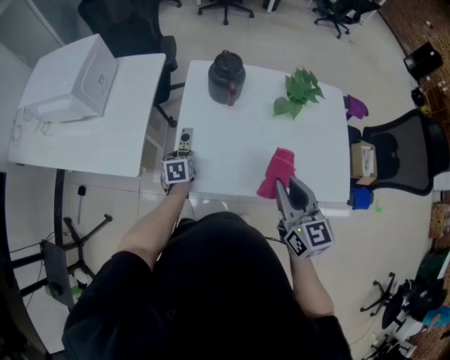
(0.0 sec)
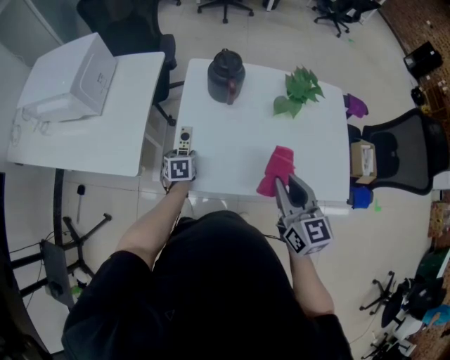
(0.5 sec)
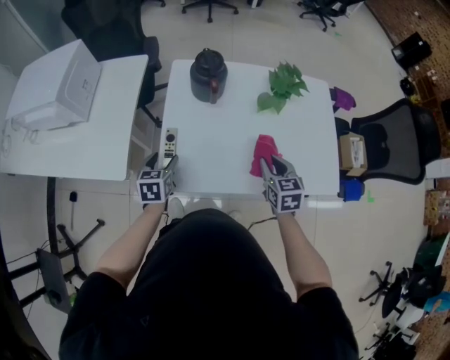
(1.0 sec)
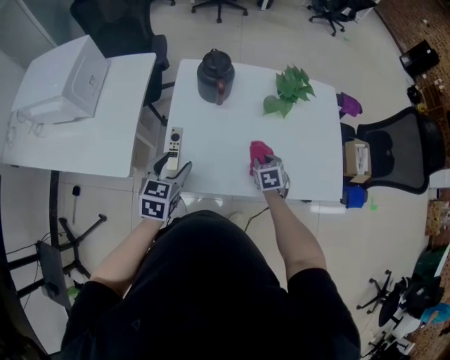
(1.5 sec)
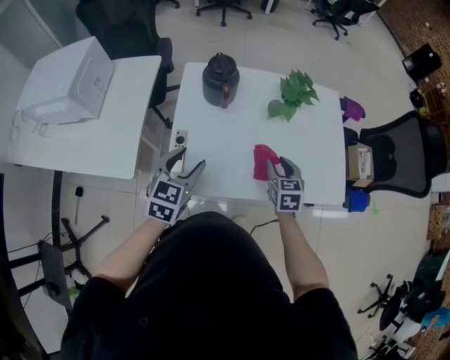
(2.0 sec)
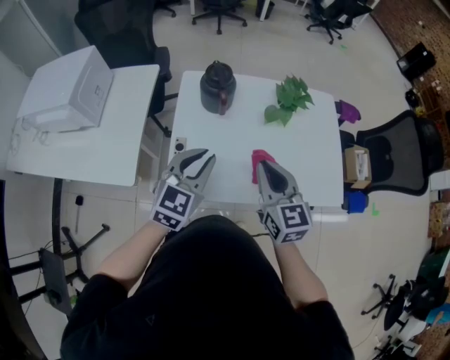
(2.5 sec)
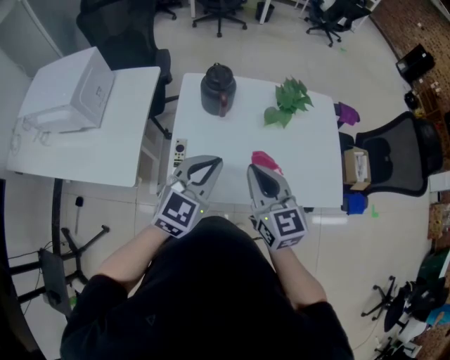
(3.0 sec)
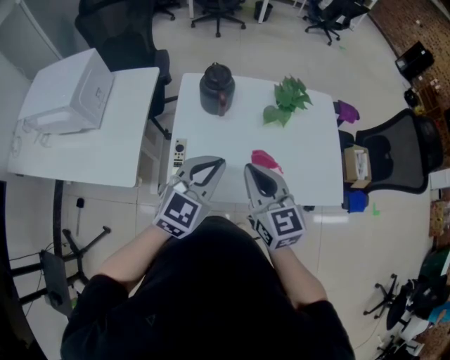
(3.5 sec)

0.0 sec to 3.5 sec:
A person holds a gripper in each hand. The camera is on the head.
0.0 sec to 2.0 sec: The right gripper travels downward and forward by roughly 20 cm, and swivels about 30 degrees. The left gripper shifts approximately 20 cm upward, and rotates approximately 40 degrees.
2.0 sec to 3.5 sec: The left gripper travels upward and to the right by roughly 15 cm, changes its angle by about 20 degrees, and closes. The right gripper heads upward, to the left and backward, covering some 25 cm, rotates approximately 30 degrees, and closes.

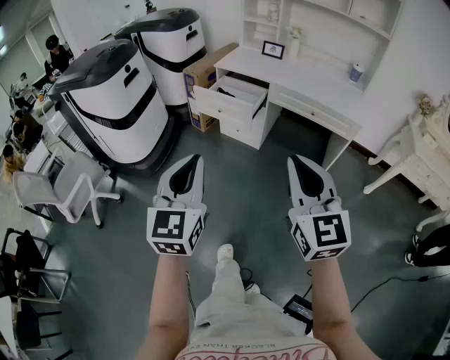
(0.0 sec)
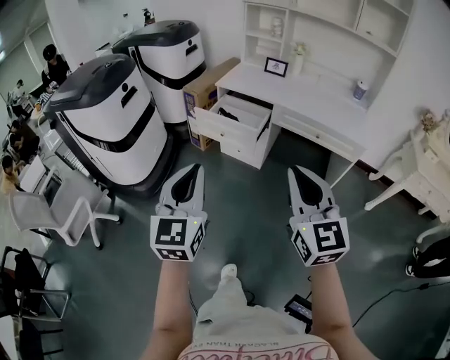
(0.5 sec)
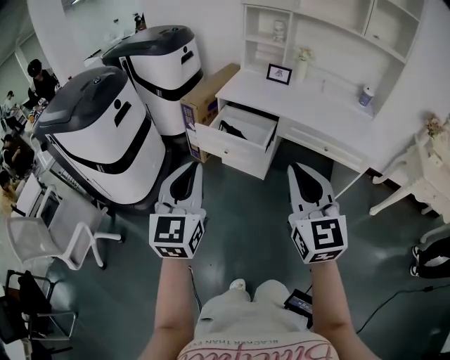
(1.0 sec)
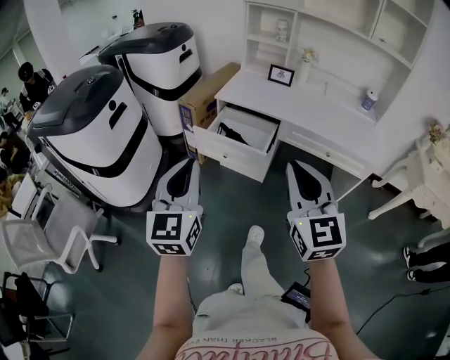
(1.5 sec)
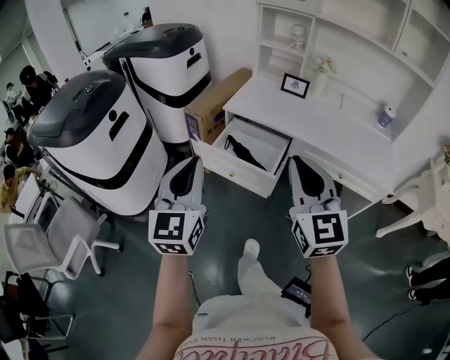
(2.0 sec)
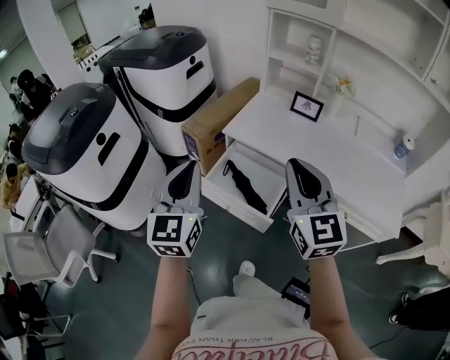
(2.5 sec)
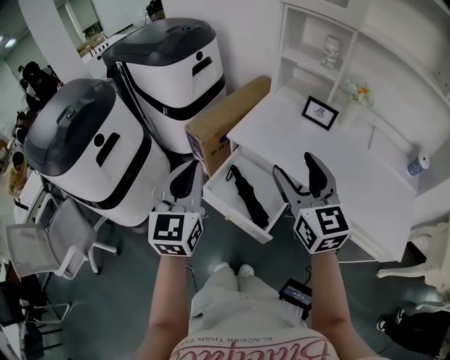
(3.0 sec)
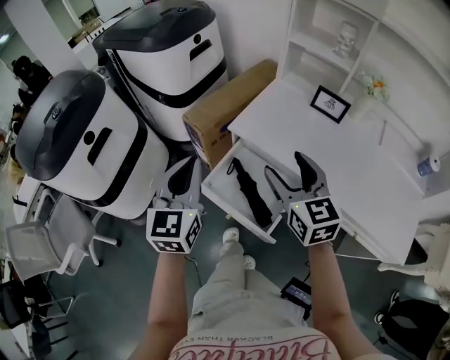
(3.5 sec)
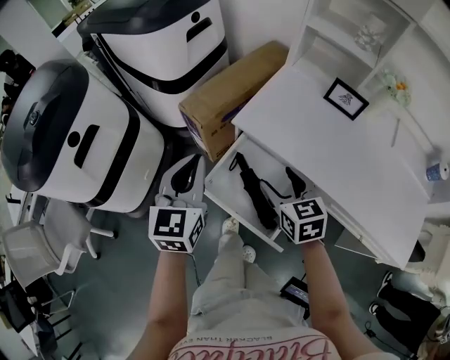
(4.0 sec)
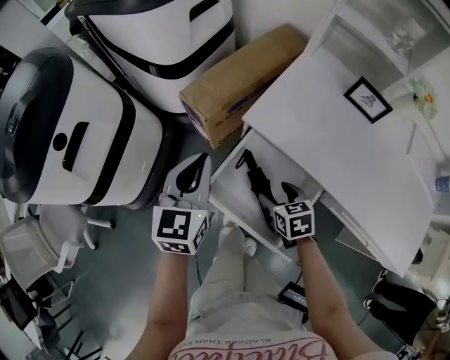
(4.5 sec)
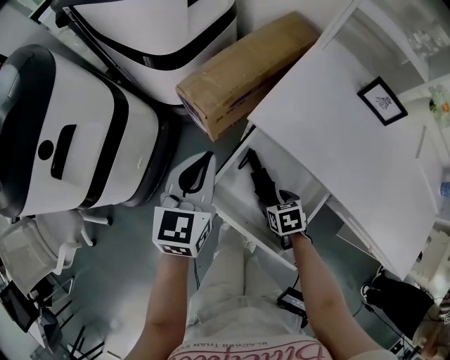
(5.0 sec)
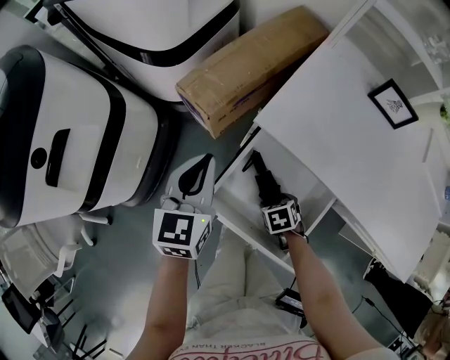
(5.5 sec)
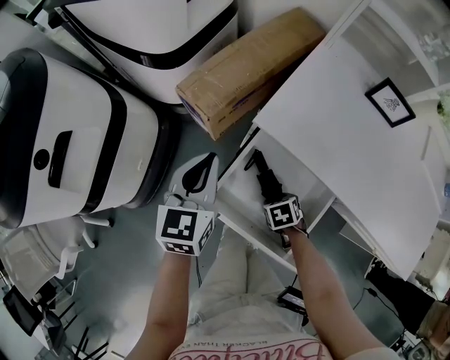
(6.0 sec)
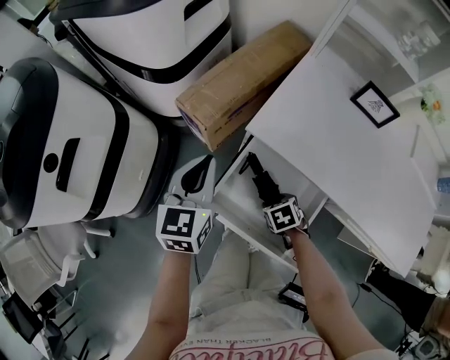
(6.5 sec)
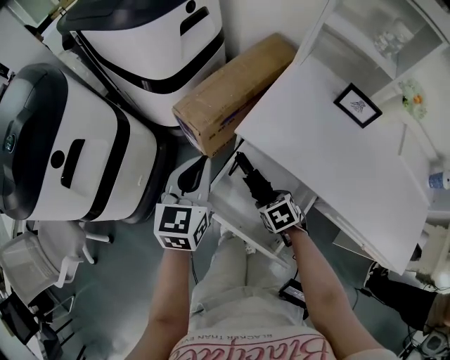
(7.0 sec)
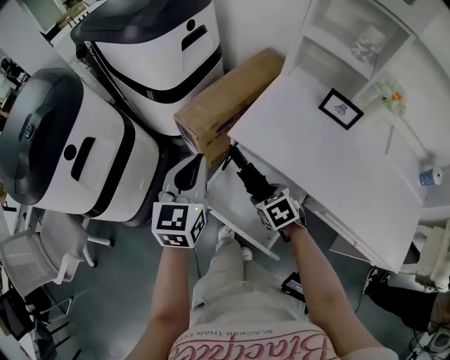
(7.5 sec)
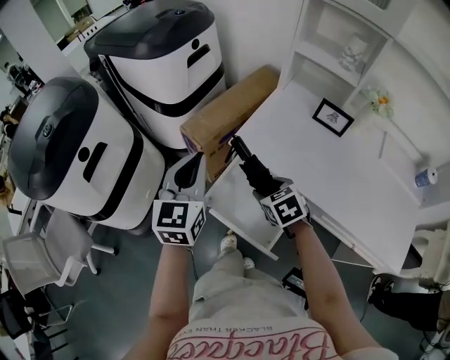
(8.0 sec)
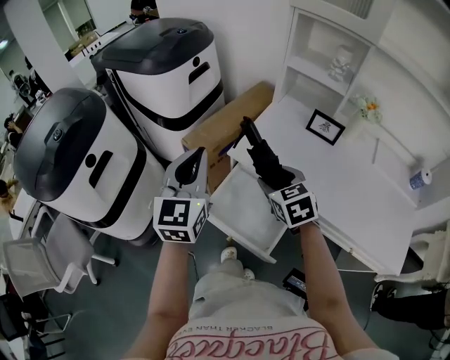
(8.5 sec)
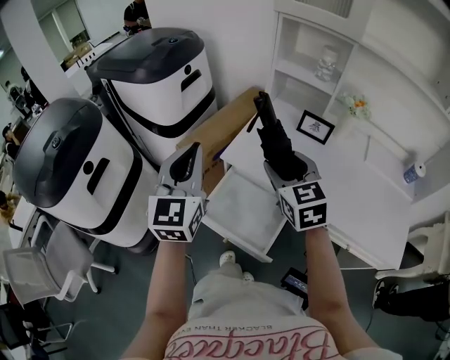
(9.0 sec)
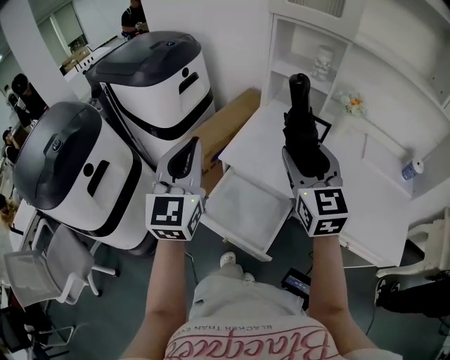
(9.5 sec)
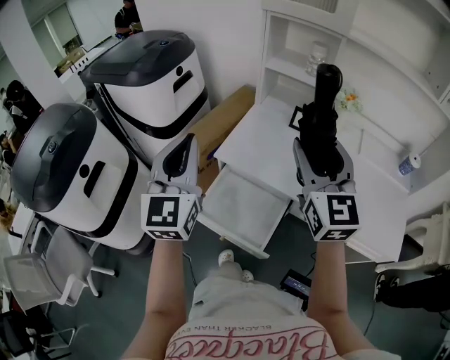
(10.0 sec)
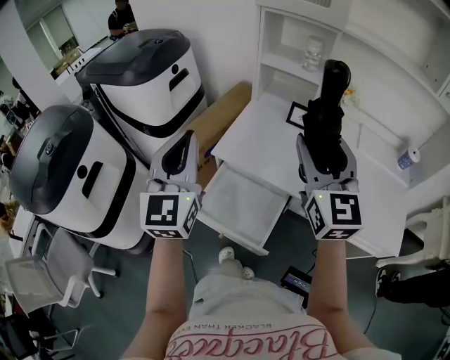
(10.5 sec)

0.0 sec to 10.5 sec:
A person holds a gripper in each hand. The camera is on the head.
0.0 sec to 2.0 sec: The grippers both shift forward by some 40 cm.
2.0 sec to 4.0 sec: The left gripper is displaced forward by some 35 cm, while the right gripper travels forward and downward by roughly 40 cm, angles its fingers downward, by some 40 degrees, and opens.
4.0 sec to 6.5 sec: The right gripper moves downward, roughly 25 cm, and tilts its fingers roughly 40 degrees downward, while the left gripper heads downward, covering some 10 cm.
6.5 sec to 8.5 sec: The left gripper heads upward, covering approximately 20 cm, and turns by about 20 degrees; the right gripper heads upward, covering some 30 cm, and angles its fingers upward, by about 40 degrees.
8.5 sec to 10.5 sec: The right gripper is displaced upward and to the right by some 25 cm, and tilts its fingers roughly 40 degrees upward. Meanwhile the left gripper heads upward, covering about 10 cm.

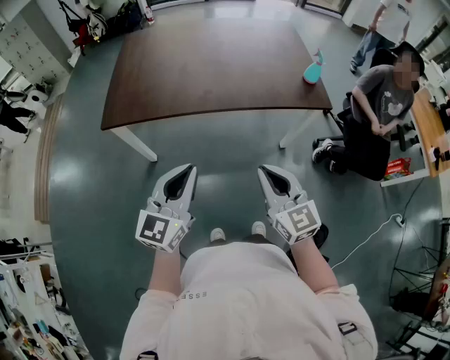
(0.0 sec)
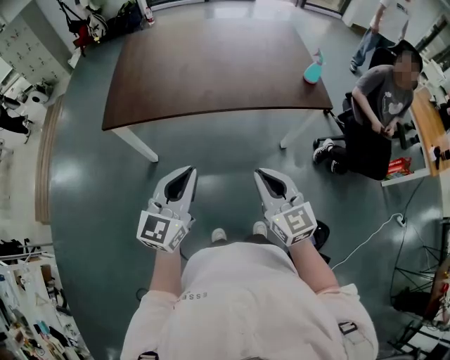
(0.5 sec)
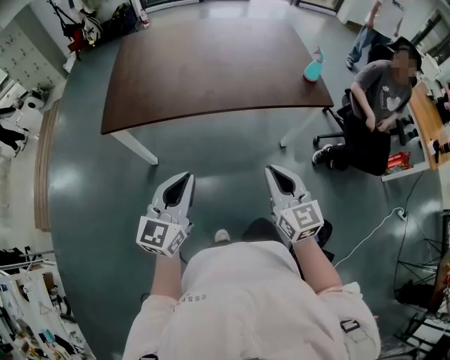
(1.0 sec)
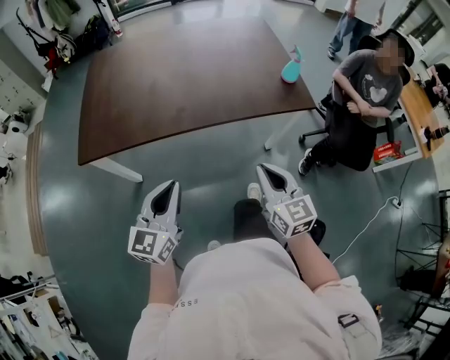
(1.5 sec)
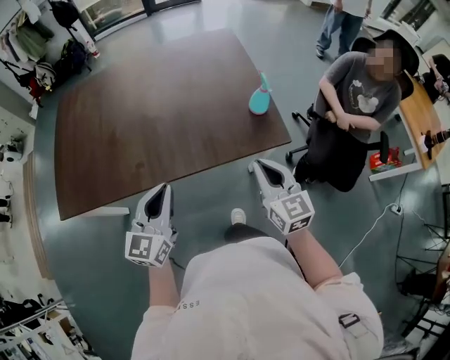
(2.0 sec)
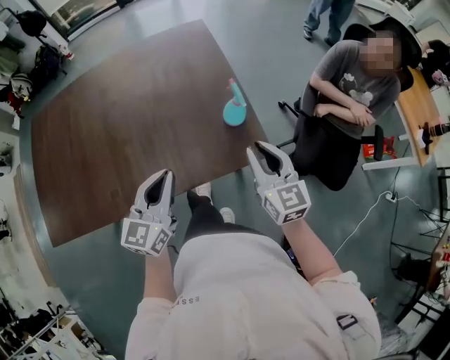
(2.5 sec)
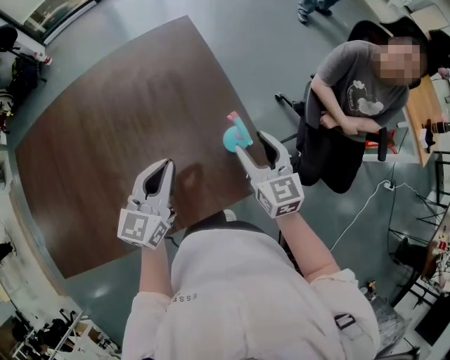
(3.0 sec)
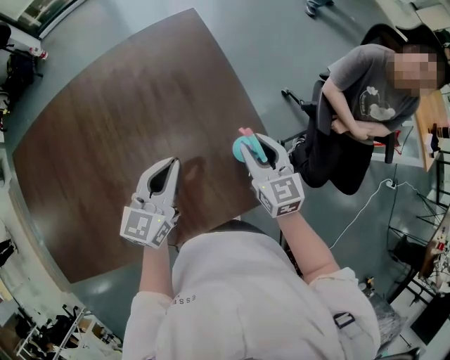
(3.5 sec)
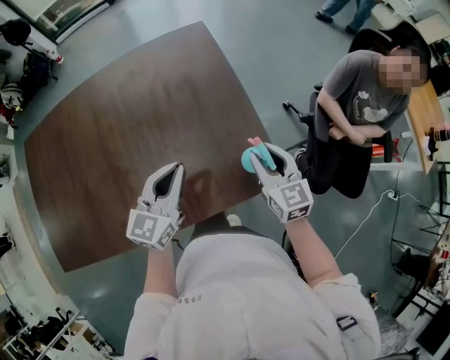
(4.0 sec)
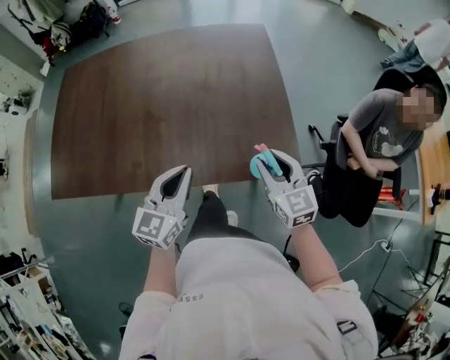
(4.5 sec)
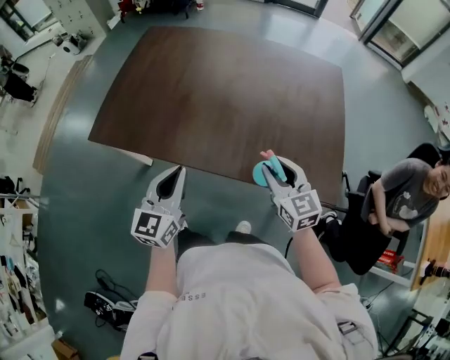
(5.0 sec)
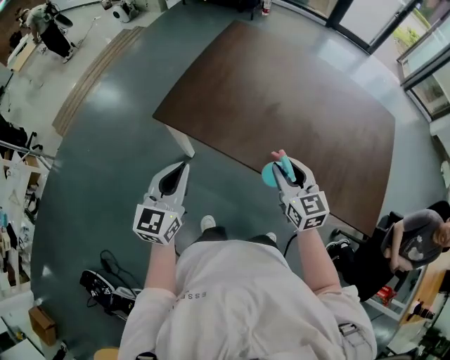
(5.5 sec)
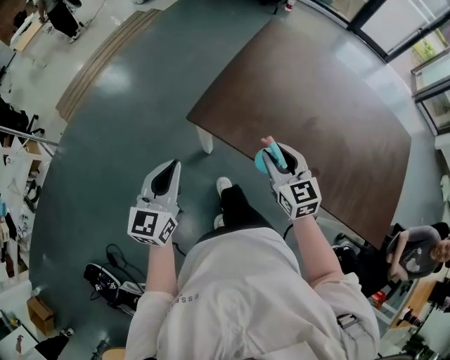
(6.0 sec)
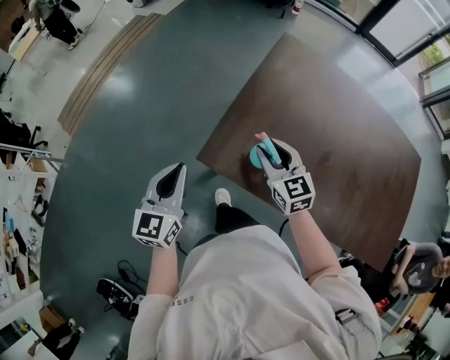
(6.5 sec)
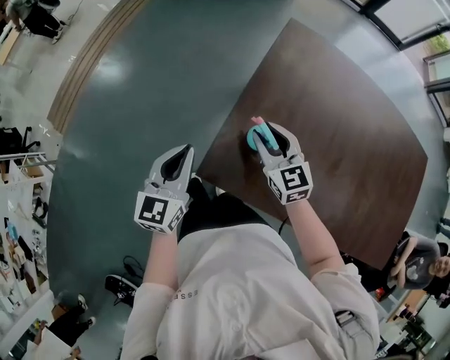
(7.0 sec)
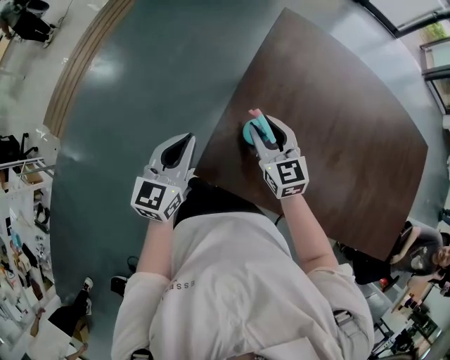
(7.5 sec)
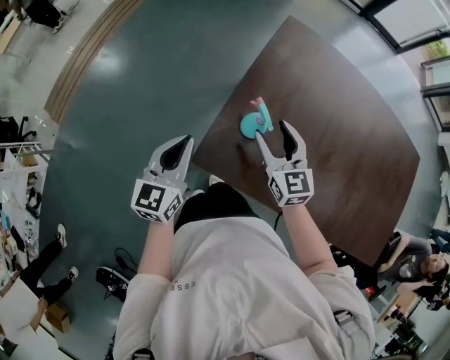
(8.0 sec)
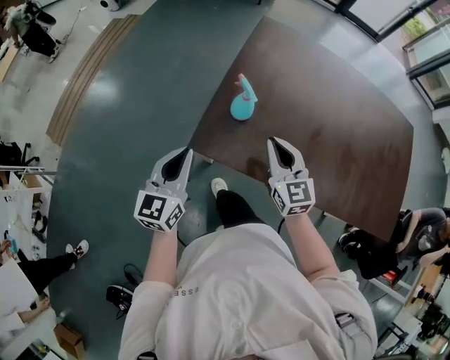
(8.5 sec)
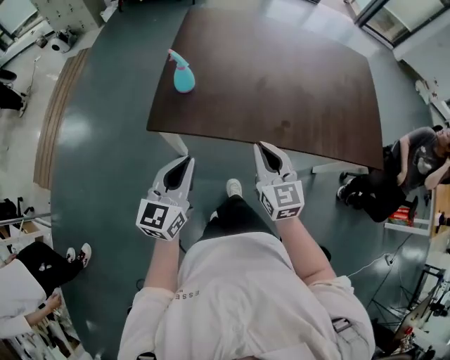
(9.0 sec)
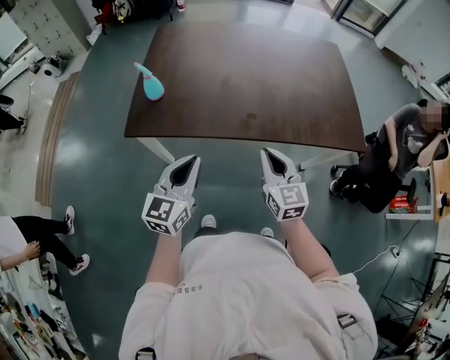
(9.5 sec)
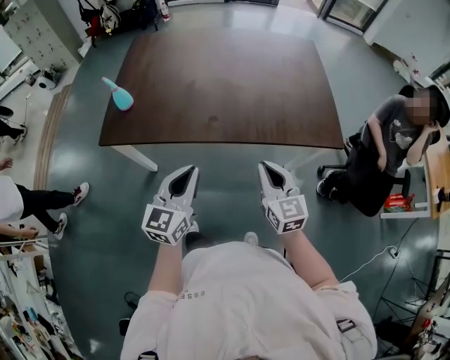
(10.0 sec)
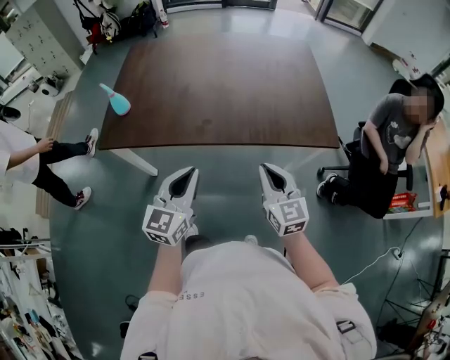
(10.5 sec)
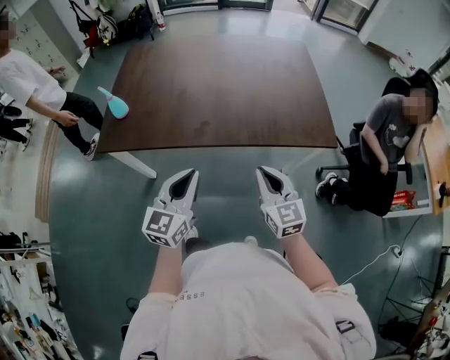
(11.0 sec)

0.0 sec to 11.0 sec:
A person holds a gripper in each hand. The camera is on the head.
0.0 sec to 2.0 sec: Both grippers travel together forward and to the right, approximately 35 cm.
2.0 sec to 3.5 sec: Both grippers move forward, some 30 cm. The left gripper turns by roughly 20 degrees, while the right gripper opens its fingers.
3.5 sec to 5.5 sec: The pair of grippers is taken about 60 cm. The right gripper changes its angle by some 50 degrees, while the left gripper rotates about 60 degrees.
5.5 sec to 7.5 sec: The grippers both shift forward and to the left by some 40 cm.
7.5 sec to 9.0 sec: Both grippers move backward and to the right, approximately 35 cm. The right gripper turns by some 20 degrees, and closes up.
9.0 sec to 11.0 sec: The two grippers go roughly 30 cm to the right.

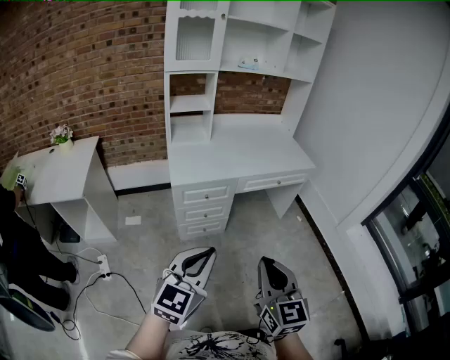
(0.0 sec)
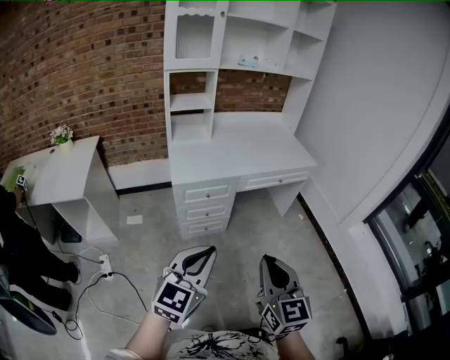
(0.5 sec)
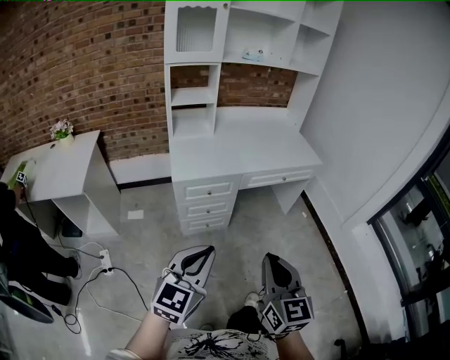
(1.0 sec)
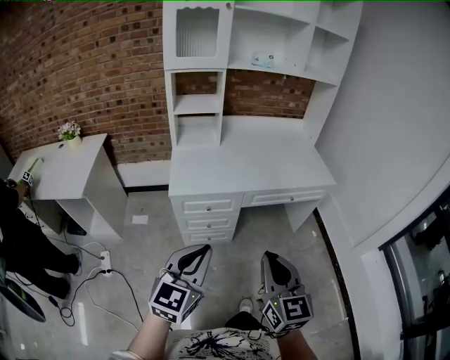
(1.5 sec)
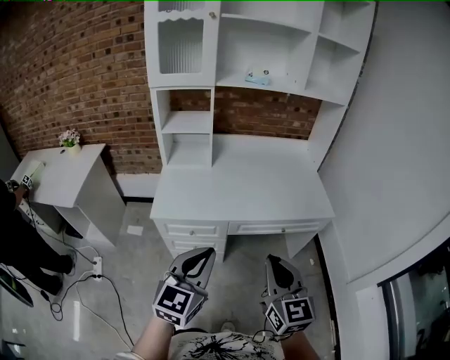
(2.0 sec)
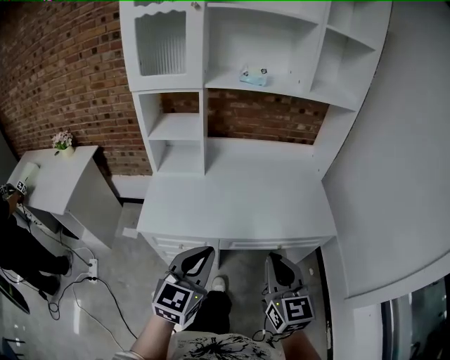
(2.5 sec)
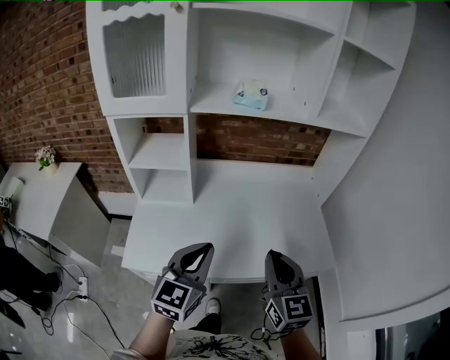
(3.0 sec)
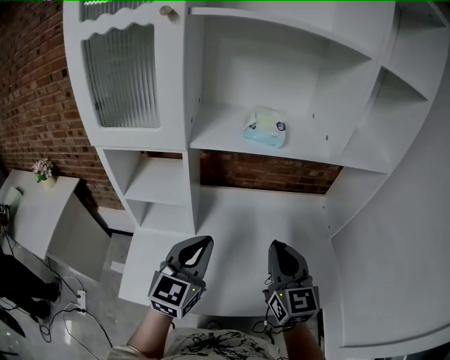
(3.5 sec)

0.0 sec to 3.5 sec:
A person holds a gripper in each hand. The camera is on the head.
0.0 sec to 2.0 sec: The grippers both shift forward and to the right by some 35 cm.
2.0 sec to 3.5 sec: Both grippers are carried forward, about 50 cm.
